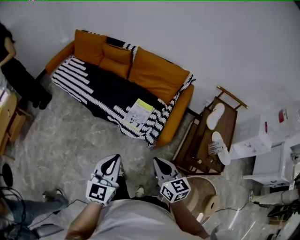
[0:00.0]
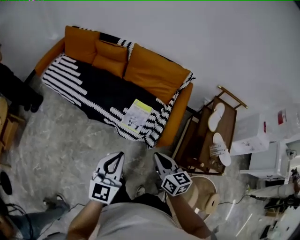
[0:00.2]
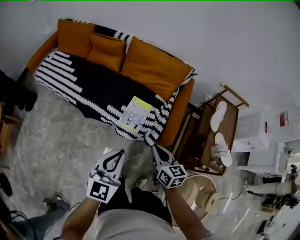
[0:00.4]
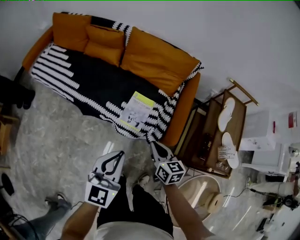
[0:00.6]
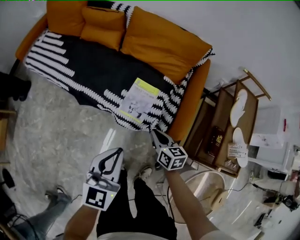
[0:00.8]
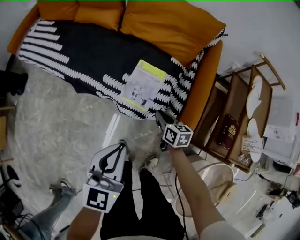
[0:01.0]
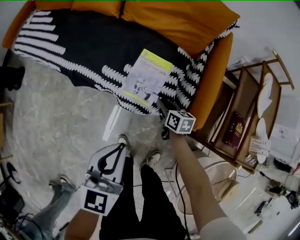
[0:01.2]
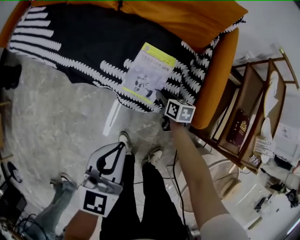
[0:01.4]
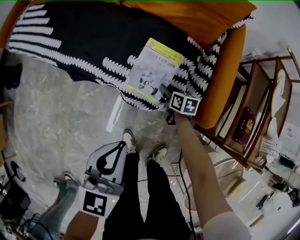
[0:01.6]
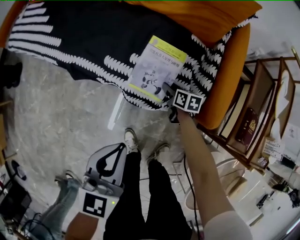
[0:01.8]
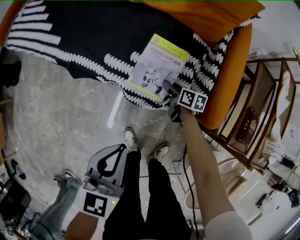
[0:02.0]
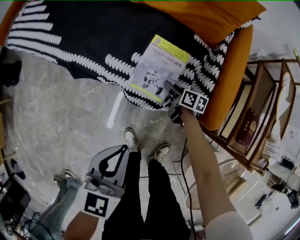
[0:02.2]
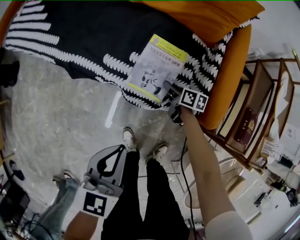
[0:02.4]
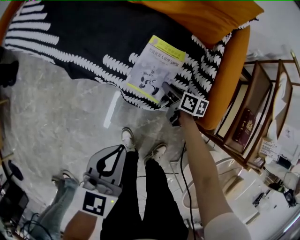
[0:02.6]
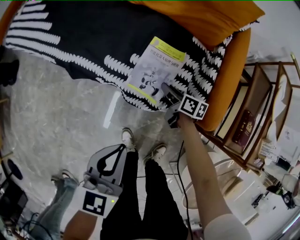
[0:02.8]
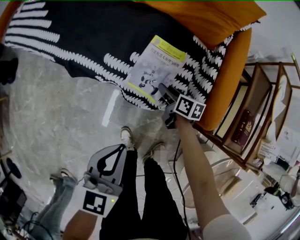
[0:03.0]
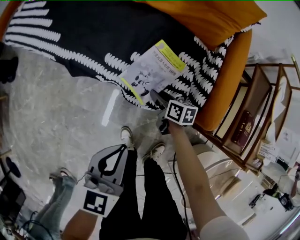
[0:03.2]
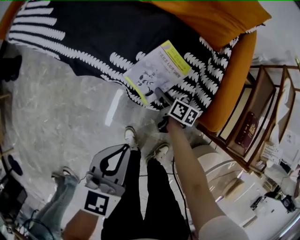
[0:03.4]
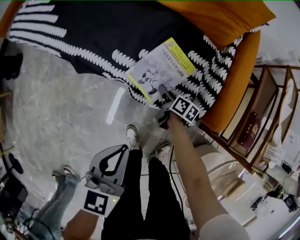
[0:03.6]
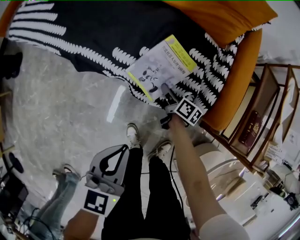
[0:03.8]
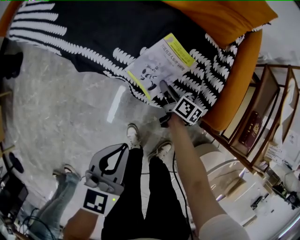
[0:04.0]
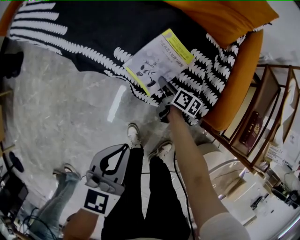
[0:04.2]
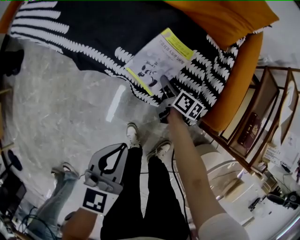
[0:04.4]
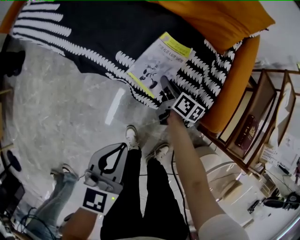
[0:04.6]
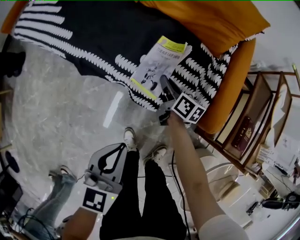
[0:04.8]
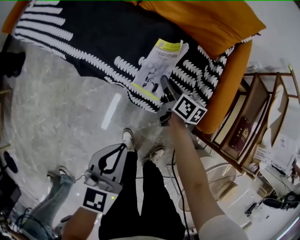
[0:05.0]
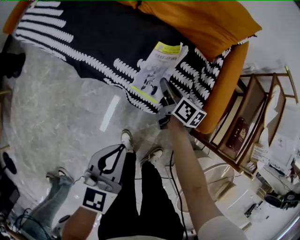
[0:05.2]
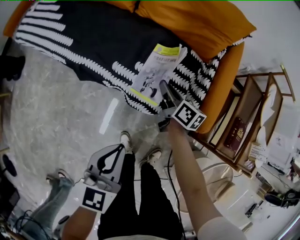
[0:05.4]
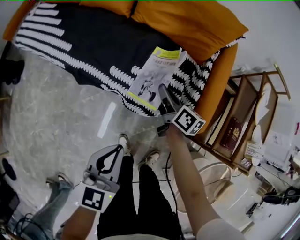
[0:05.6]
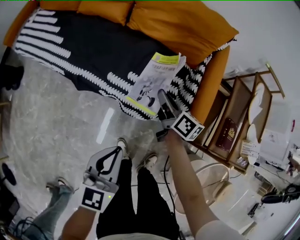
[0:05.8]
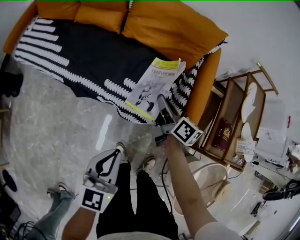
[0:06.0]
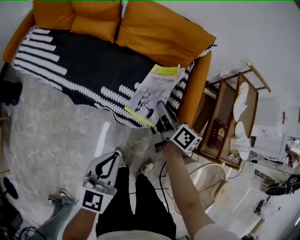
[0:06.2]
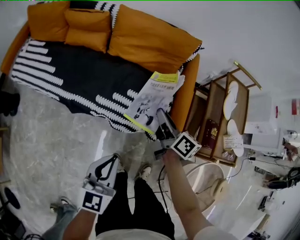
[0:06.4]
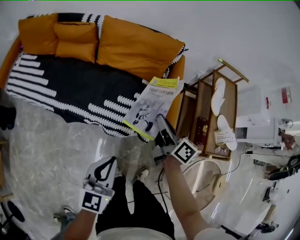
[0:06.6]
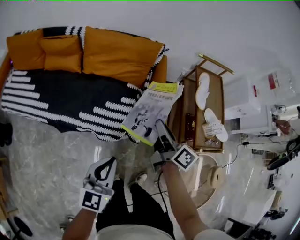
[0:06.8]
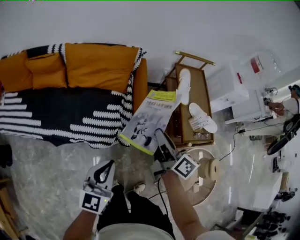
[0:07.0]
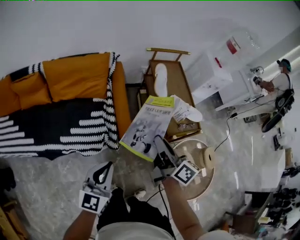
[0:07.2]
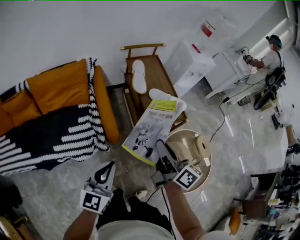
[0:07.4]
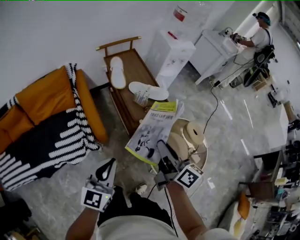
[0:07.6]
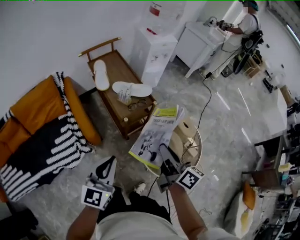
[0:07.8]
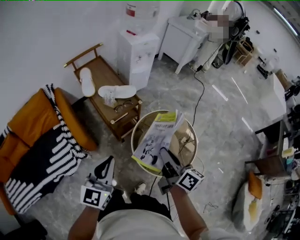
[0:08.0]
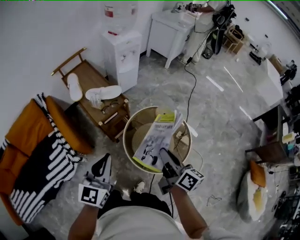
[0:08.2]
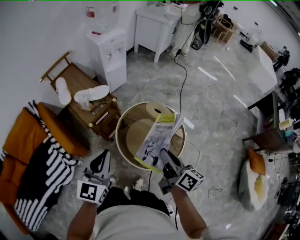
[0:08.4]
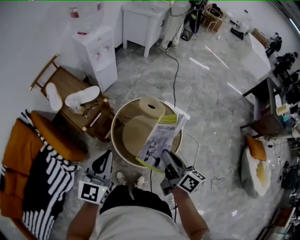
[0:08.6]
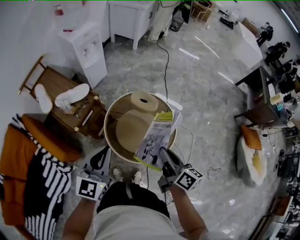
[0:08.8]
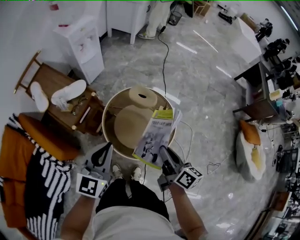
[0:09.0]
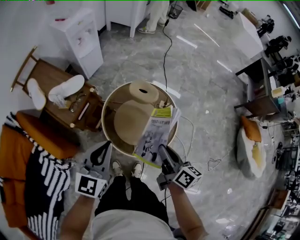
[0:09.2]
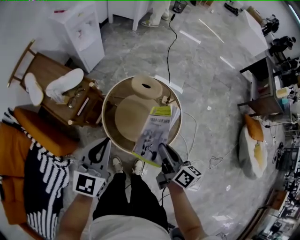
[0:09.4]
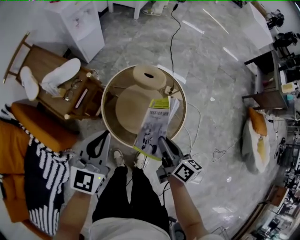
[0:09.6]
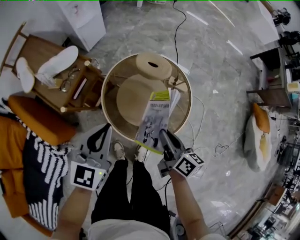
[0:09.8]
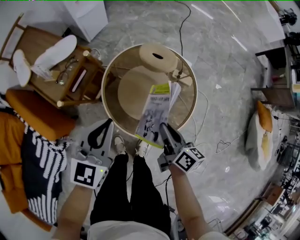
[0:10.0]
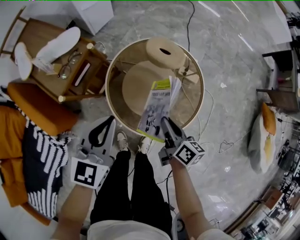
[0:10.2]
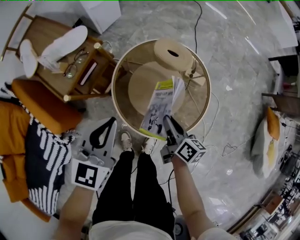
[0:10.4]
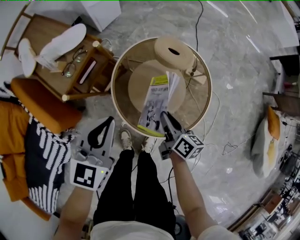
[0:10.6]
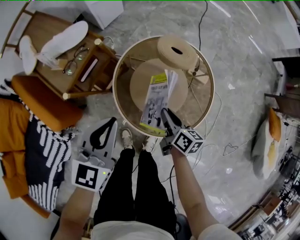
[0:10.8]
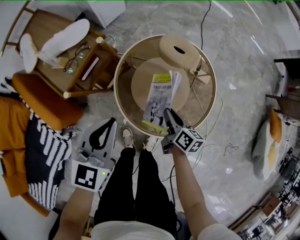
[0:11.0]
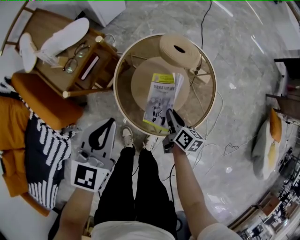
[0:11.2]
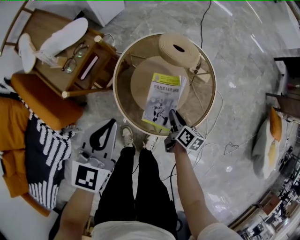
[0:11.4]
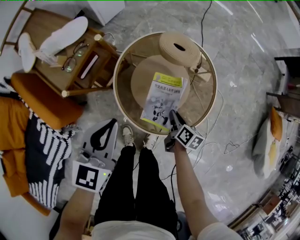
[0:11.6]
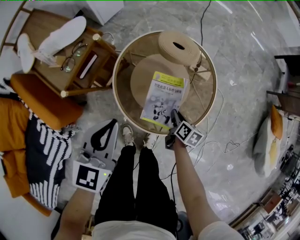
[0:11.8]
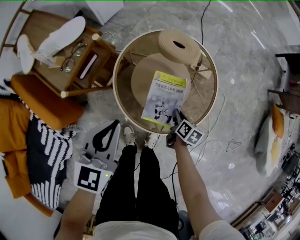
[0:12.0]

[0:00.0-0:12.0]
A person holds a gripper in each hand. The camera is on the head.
0:00.0 to 0:01.6: The right gripper is displaced downward and forward by about 70 cm, tilts its fingers roughly 30 degrees downward, and opens up. The left gripper travels downward and forward by some 40 cm.
0:04.4 to 0:06.0: The right gripper goes roughly 30 cm upward. The left gripper heads upward, covering some 15 cm.
0:06.0 to 0:07.6: The left gripper changes place by approximately 40 cm, and rotates about 50 degrees; the right gripper moves roughly 70 cm, and turns by some 50 degrees.
0:07.6 to 0:09.0: The right gripper shifts by about 40 cm, and rotates approximately 40 degrees; the left gripper ends up about 35 cm from where it was, and swivels some 40 degrees.
0:09.0 to 0:10.4: The left gripper goes approximately 15 cm downward. Meanwhile the right gripper is displaced downward by roughly 25 cm.
0:10.4 to 0:12.0: The right gripper moves downward and to the right, roughly 20 cm, and swivels about 30 degrees.

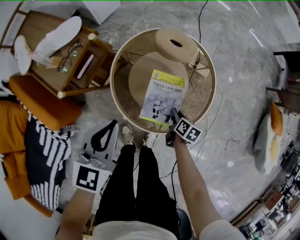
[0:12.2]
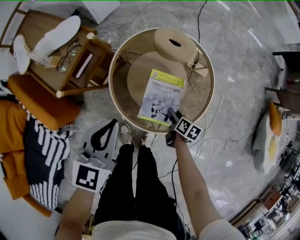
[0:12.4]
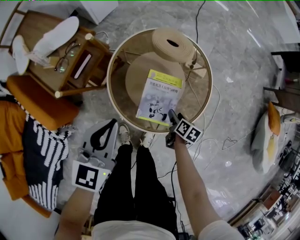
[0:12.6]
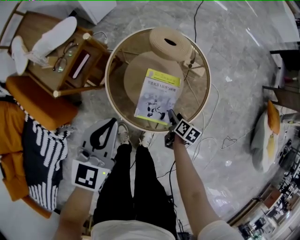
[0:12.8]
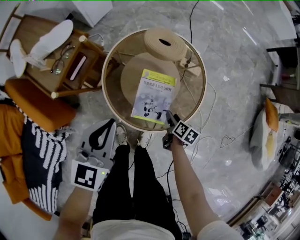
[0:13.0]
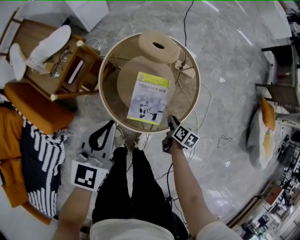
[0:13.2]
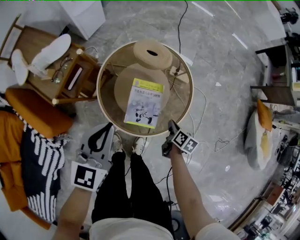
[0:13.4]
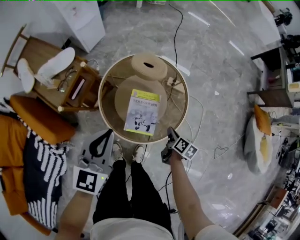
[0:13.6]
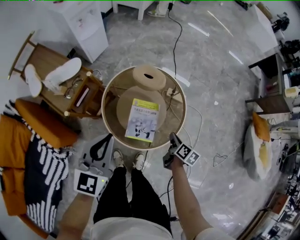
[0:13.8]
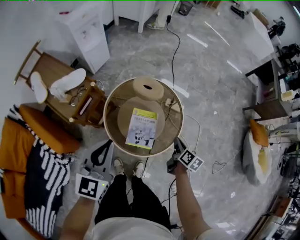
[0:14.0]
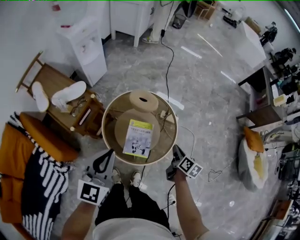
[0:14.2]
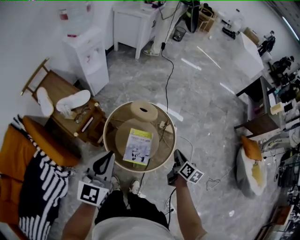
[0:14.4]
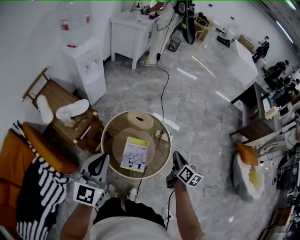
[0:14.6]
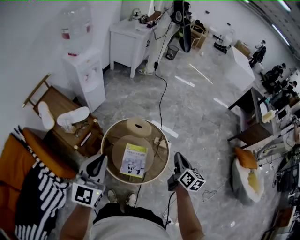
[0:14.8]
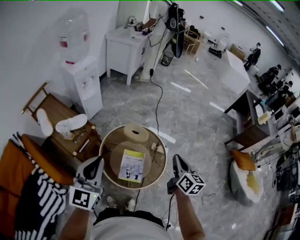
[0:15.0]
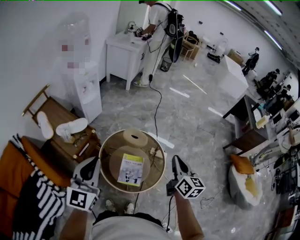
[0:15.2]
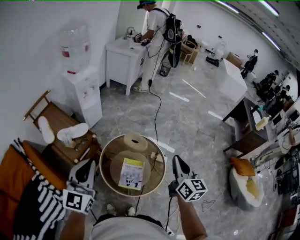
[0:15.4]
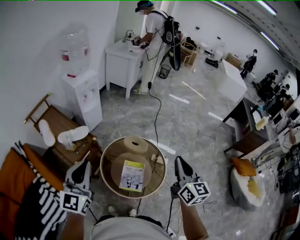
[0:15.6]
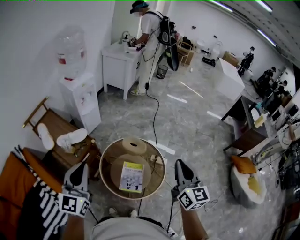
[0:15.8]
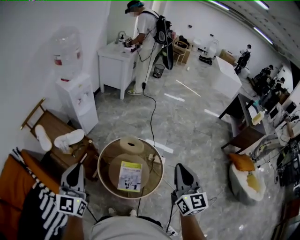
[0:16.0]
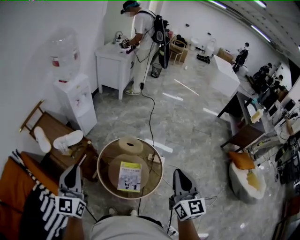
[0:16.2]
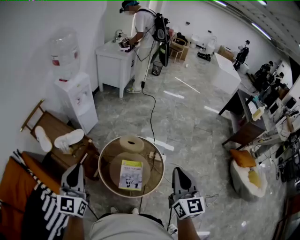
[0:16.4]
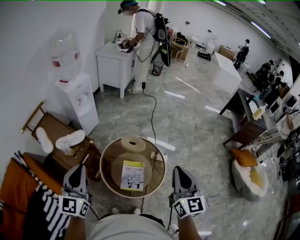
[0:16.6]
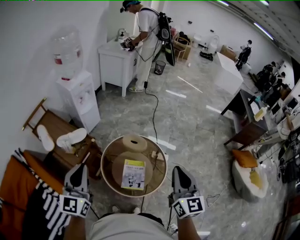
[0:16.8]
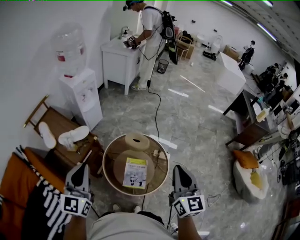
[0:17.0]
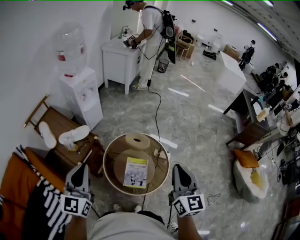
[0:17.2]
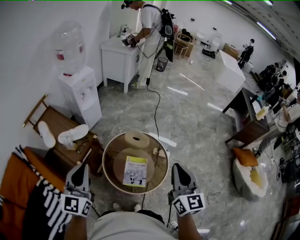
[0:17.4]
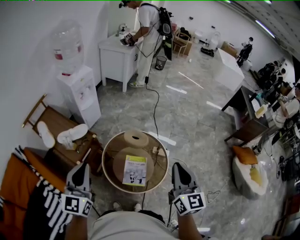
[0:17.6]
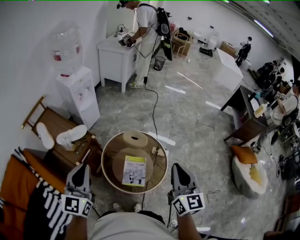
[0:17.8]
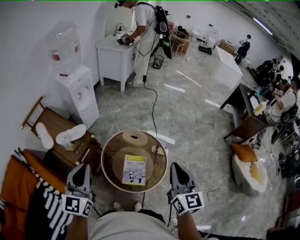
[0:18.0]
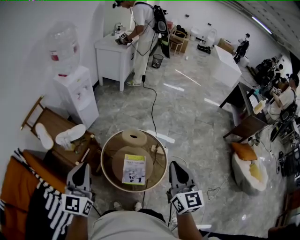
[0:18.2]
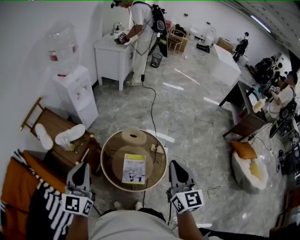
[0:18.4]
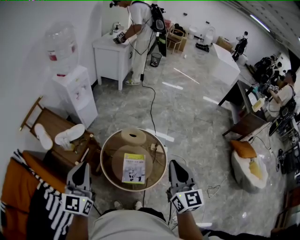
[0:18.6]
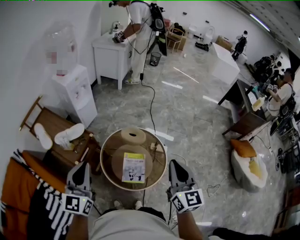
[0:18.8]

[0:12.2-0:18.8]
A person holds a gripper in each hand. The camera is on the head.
0:12.2 to 0:13.8: Both grippers travel together upward and to the right, some 15 cm. The right gripper closes its fingers.
0:13.8 to 0:15.4: The right gripper shifts roughly 40 cm upward, and tilts its fingers roughly 40 degrees upward, while the left gripper is displaced upward by roughly 20 cm, and turns by approximately 20 degrees.
0:15.4 to 0:17.2: The right gripper heads backward, covering roughly 5 cm.
0:17.2 to 0:18.8: The grippers stay close to where they were, moving slightly.

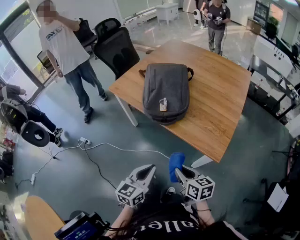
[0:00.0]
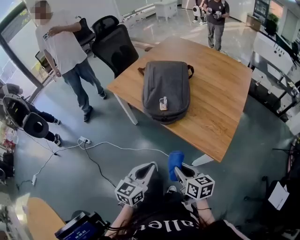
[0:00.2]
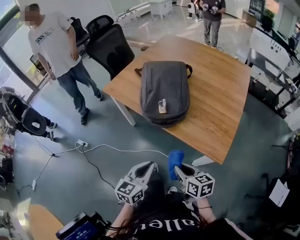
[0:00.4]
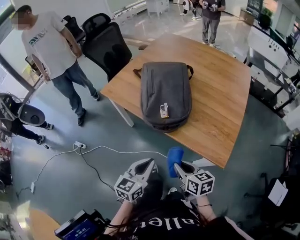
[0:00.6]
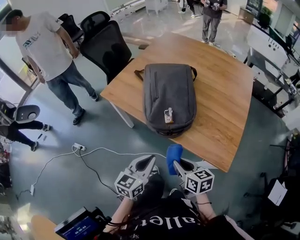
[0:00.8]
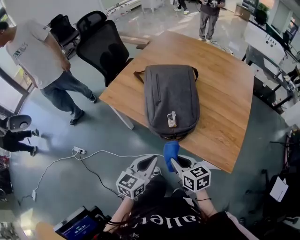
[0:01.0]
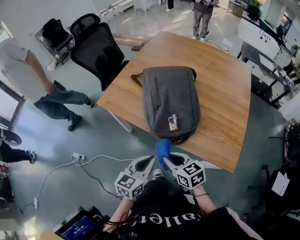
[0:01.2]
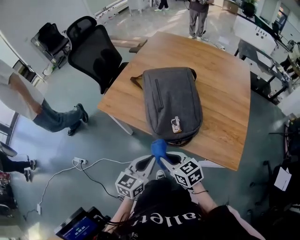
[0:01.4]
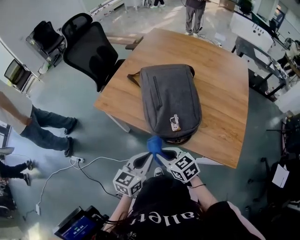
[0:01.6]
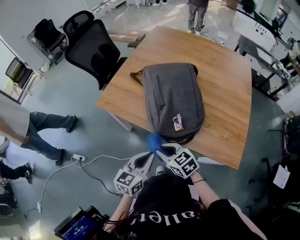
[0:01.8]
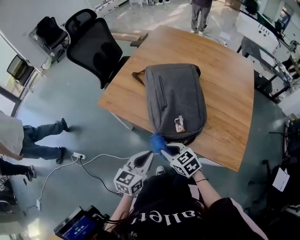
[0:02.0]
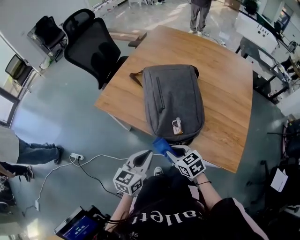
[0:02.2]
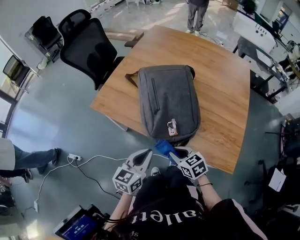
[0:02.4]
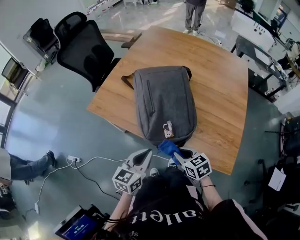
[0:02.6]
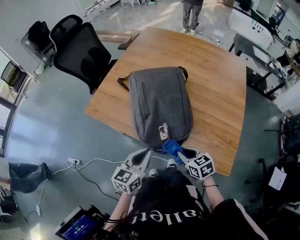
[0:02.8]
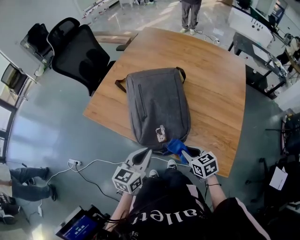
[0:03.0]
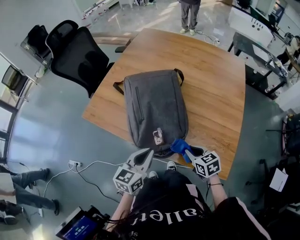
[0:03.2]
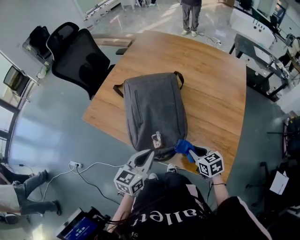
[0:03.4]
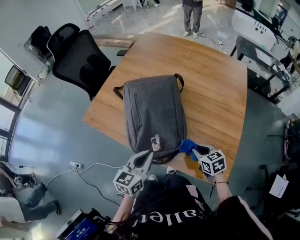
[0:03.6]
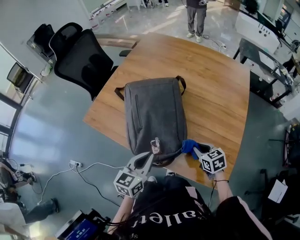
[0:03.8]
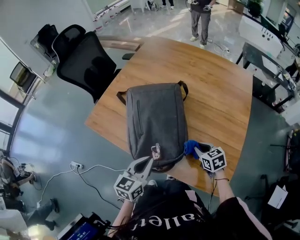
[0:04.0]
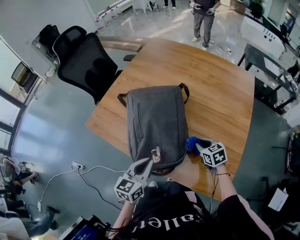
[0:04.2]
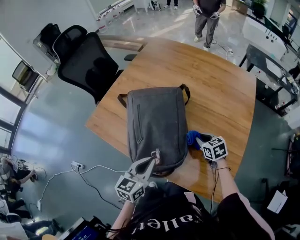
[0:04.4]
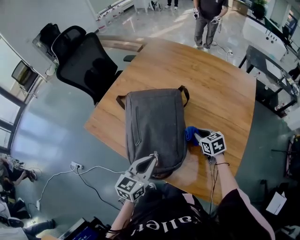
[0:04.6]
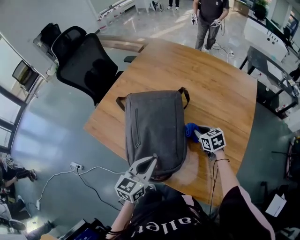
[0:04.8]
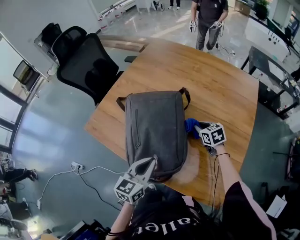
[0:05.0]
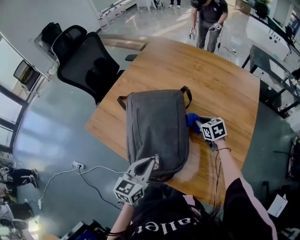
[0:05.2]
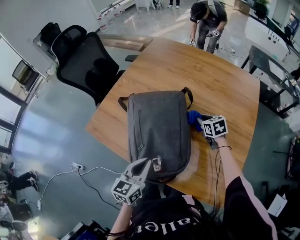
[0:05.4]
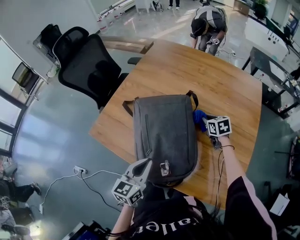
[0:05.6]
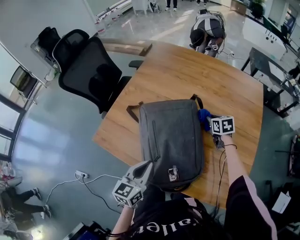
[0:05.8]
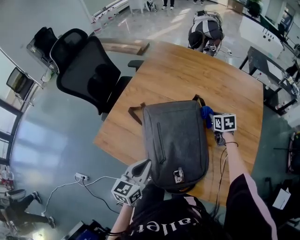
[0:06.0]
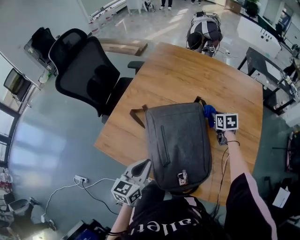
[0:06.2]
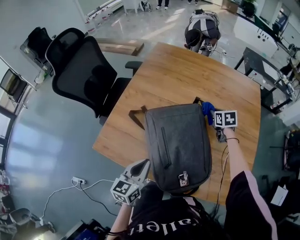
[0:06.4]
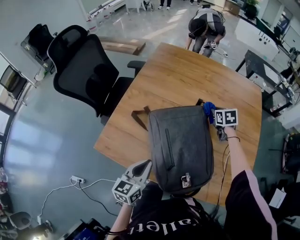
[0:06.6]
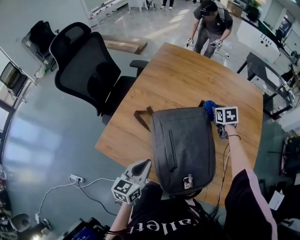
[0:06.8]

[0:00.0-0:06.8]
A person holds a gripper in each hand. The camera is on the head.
0:00.0 to 0:01.4: Both grippers travel together forward and to the left, about 30 cm.
0:01.4 to 0:02.8: The right gripper goes some 15 cm to the right; the left gripper moves forward and to the right, about 10 cm.
0:02.8 to 0:04.0: The right gripper moves to the right and forward, some 20 cm, while the left gripper goes approximately 10 cm to the right and forward.
0:04.0 to 0:05.4: The right gripper travels forward by some 20 cm, while the left gripper is displaced forward by approximately 5 cm.
0:05.4 to 0:06.8: The right gripper moves forward, to the left and upward, roughly 15 cm, and turns by some 20 degrees, while the left gripper is displaced to the left by some 15 cm.
